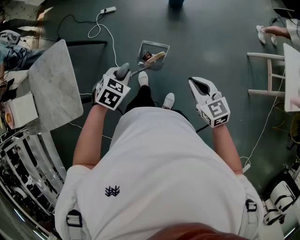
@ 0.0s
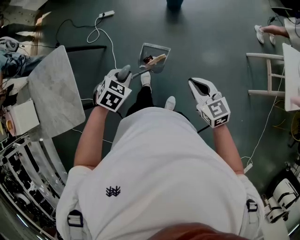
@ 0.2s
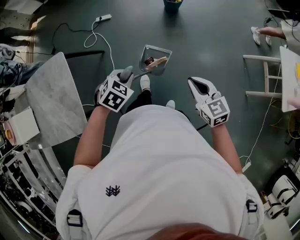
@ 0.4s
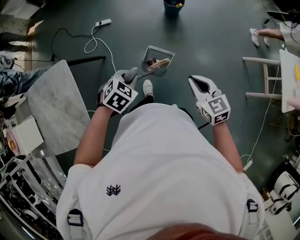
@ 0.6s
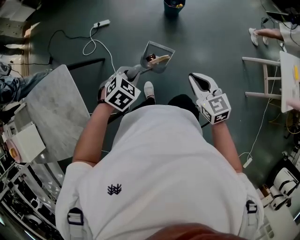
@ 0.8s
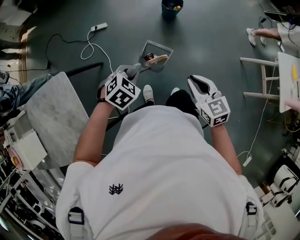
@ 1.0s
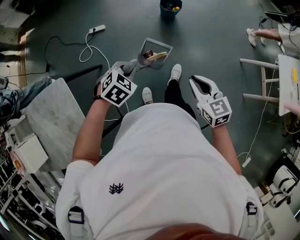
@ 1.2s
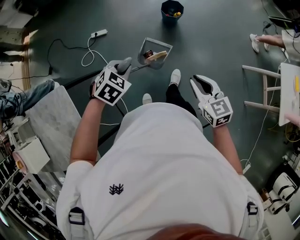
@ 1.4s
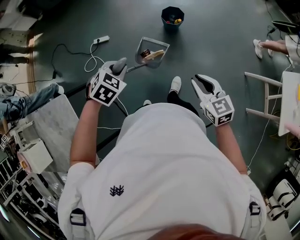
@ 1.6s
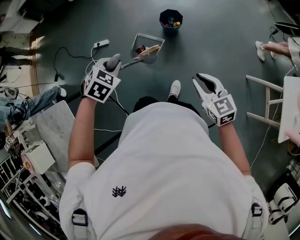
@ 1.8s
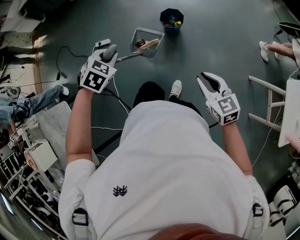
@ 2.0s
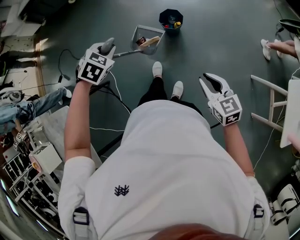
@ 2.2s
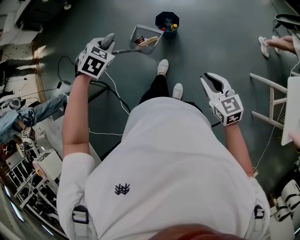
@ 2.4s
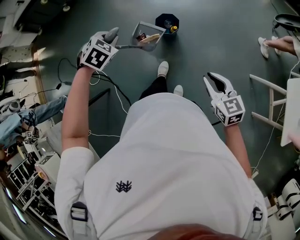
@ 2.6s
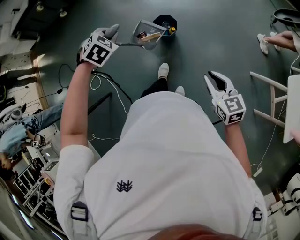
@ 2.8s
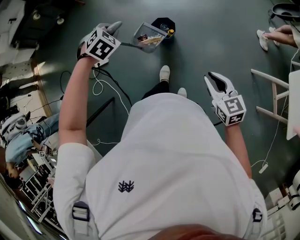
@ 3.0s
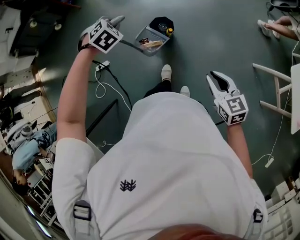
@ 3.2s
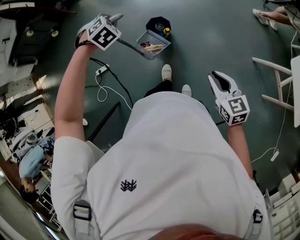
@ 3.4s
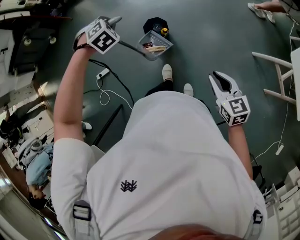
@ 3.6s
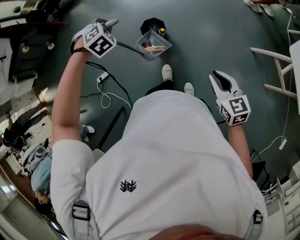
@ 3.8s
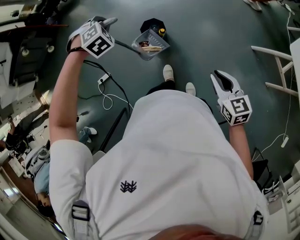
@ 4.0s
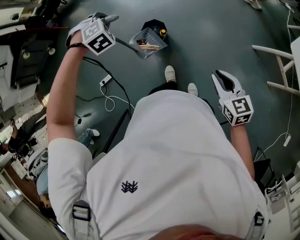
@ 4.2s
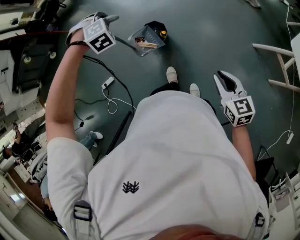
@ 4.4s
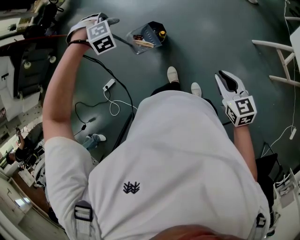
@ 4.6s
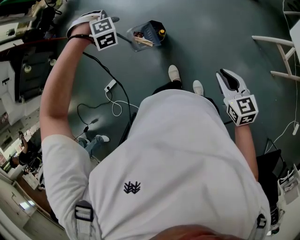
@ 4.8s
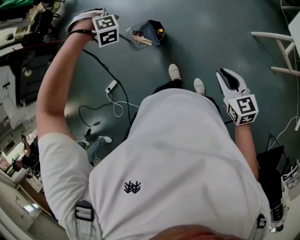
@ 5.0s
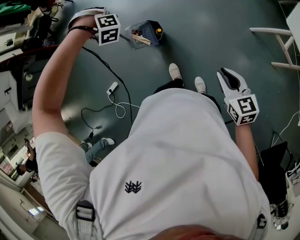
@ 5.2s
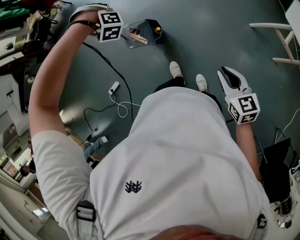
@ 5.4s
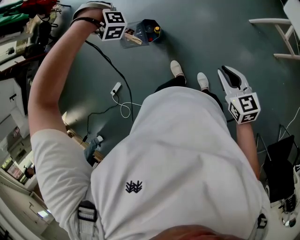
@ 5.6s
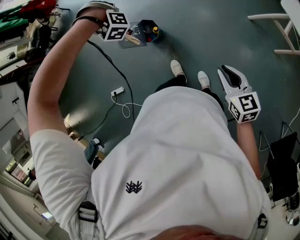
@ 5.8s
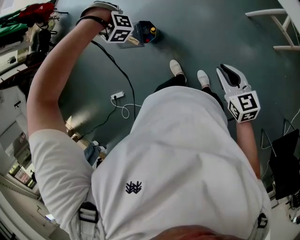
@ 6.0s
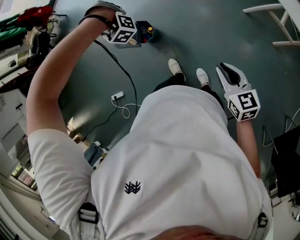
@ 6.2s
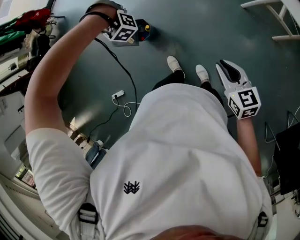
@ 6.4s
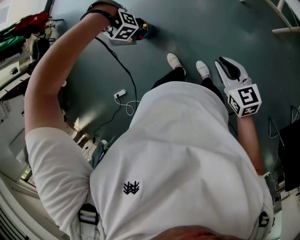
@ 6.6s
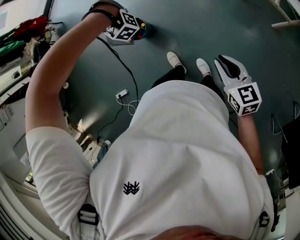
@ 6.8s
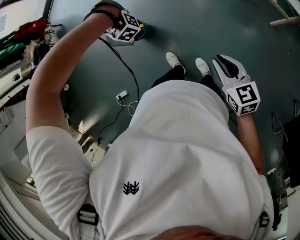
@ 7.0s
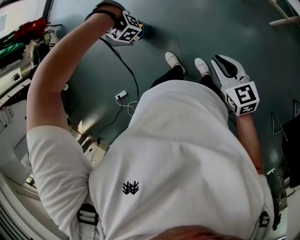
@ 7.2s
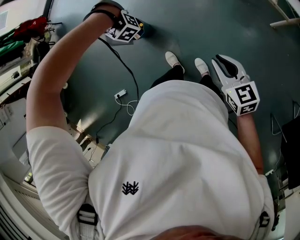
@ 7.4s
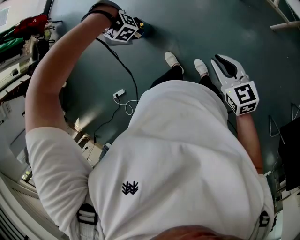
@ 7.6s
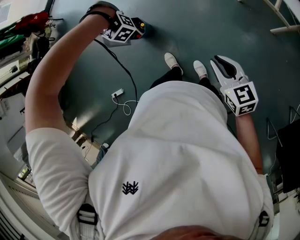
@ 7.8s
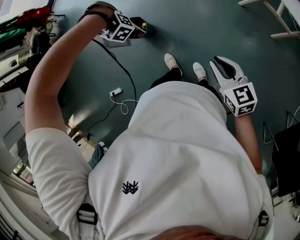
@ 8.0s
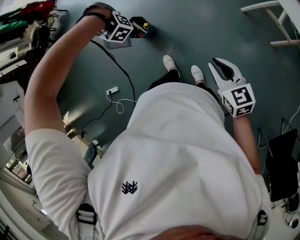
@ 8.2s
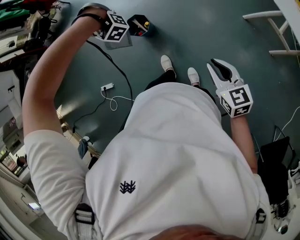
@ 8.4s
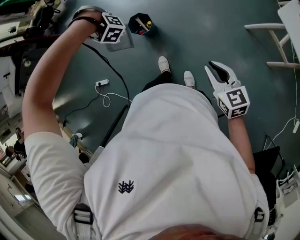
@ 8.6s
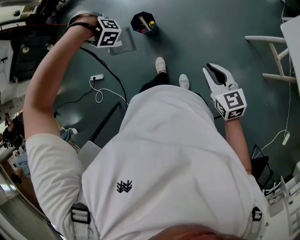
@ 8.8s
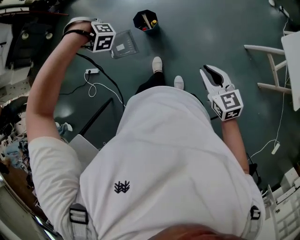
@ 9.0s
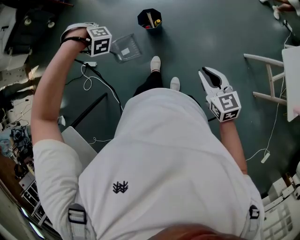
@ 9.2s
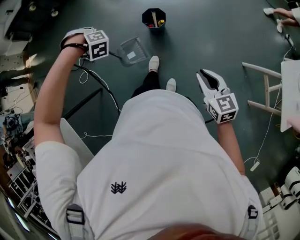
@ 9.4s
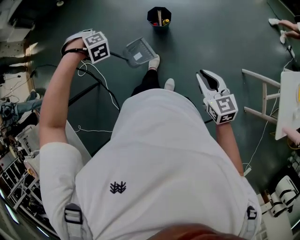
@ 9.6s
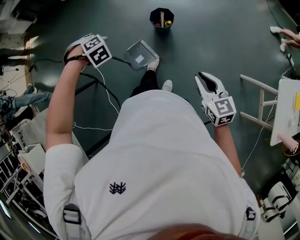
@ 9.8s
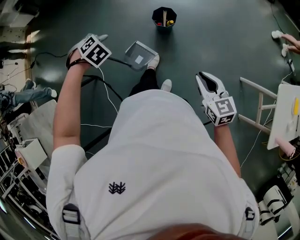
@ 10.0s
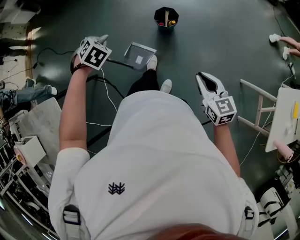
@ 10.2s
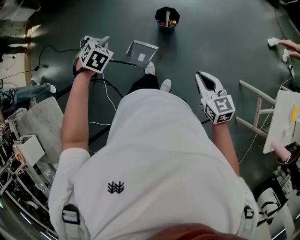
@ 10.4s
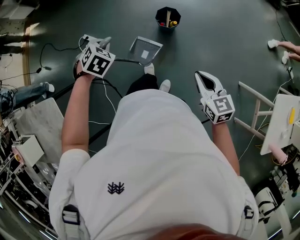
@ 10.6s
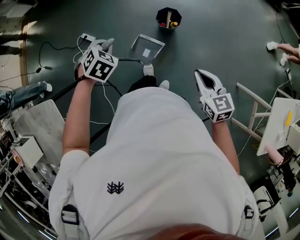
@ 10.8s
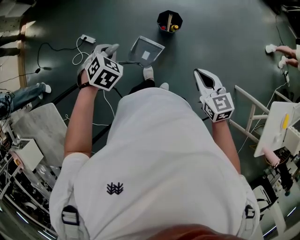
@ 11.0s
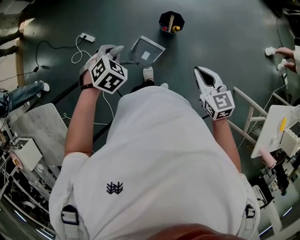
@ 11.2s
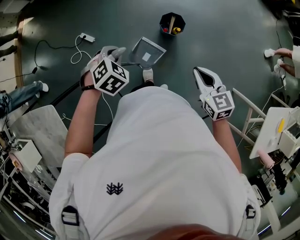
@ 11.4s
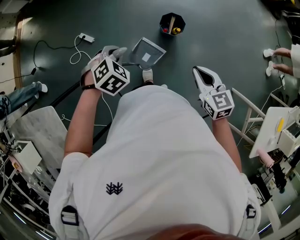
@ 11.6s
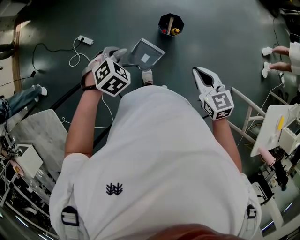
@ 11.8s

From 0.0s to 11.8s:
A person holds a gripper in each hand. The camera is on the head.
From 0.0s to 1.4s: The right gripper shifts by some 25 cm.
From 1.4s to 3.0s: The right gripper shifts by roughly 30 cm.
From 4.4s to 6.0s: The right gripper moves about 10 cm.
From 6.0s to 7.4s: The right gripper shifts by roughly 5 cm.
From 7.4s to 8.8s: The right gripper ends up some 5 cm from where it was, and turns by roughly 20 degrees.
From 8.8s to 10.4s: The right gripper changes place by some 10 cm, and changes its angle by approximately 30 degrees.
From 10.4s to 11.8s: The right gripper moves about 20 cm.

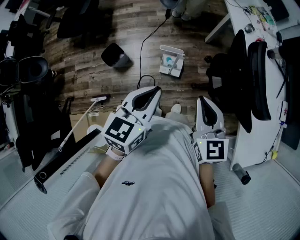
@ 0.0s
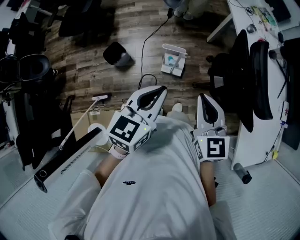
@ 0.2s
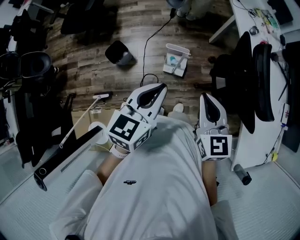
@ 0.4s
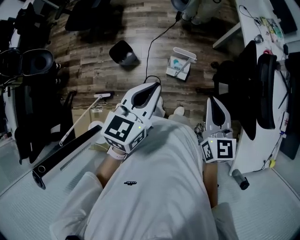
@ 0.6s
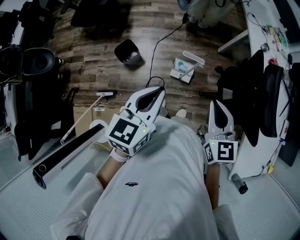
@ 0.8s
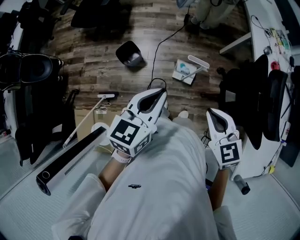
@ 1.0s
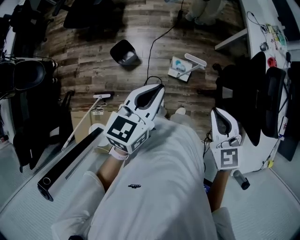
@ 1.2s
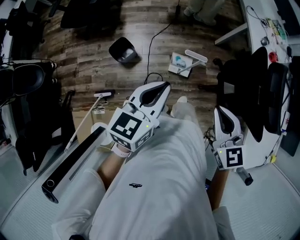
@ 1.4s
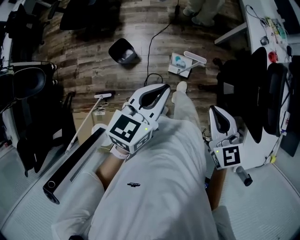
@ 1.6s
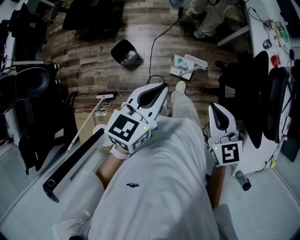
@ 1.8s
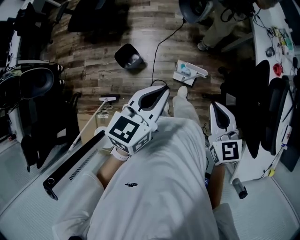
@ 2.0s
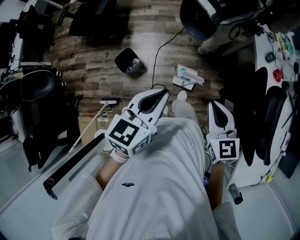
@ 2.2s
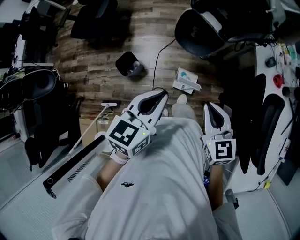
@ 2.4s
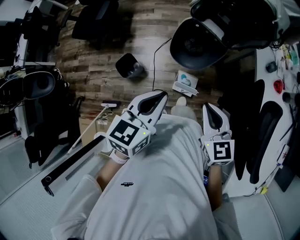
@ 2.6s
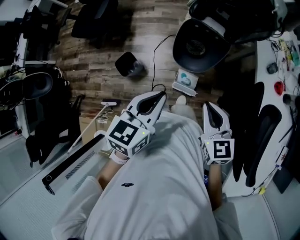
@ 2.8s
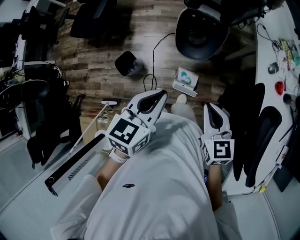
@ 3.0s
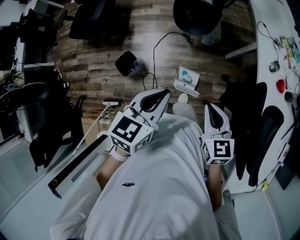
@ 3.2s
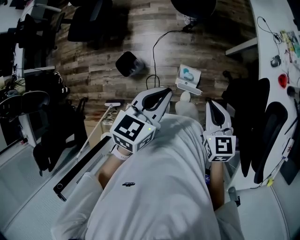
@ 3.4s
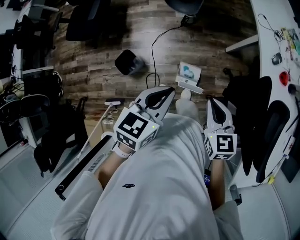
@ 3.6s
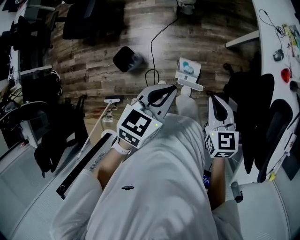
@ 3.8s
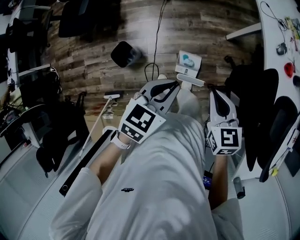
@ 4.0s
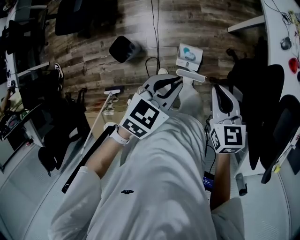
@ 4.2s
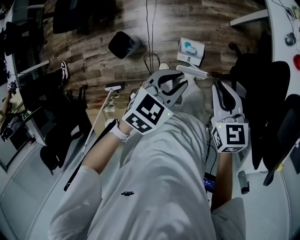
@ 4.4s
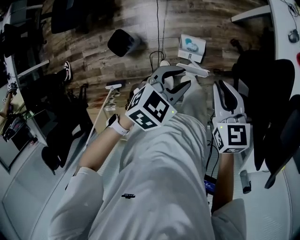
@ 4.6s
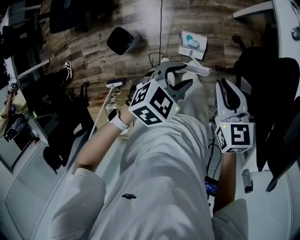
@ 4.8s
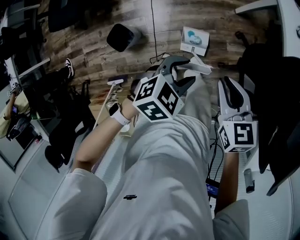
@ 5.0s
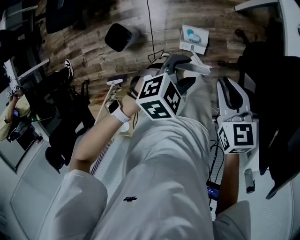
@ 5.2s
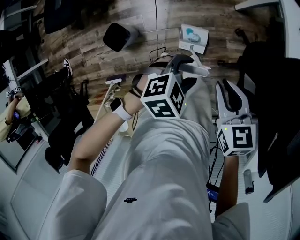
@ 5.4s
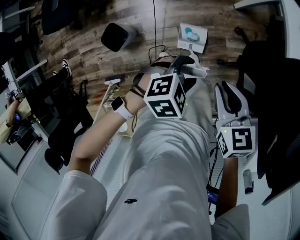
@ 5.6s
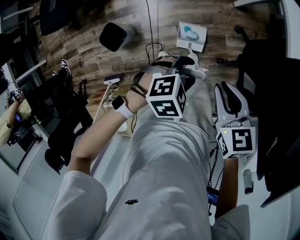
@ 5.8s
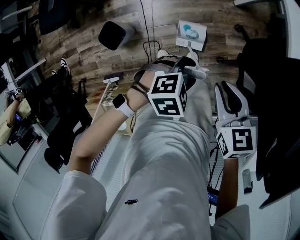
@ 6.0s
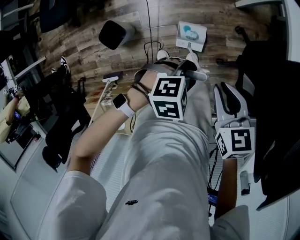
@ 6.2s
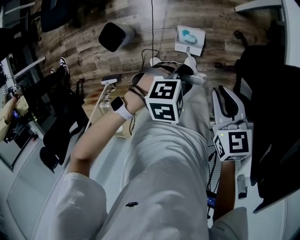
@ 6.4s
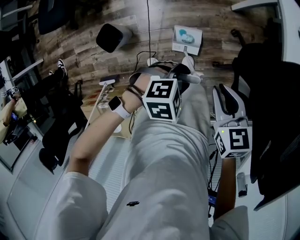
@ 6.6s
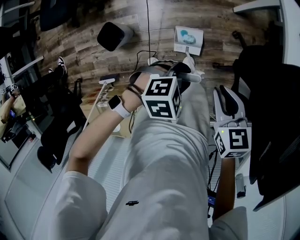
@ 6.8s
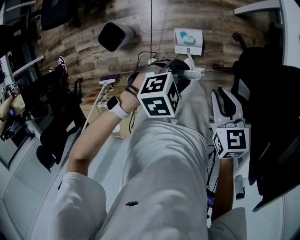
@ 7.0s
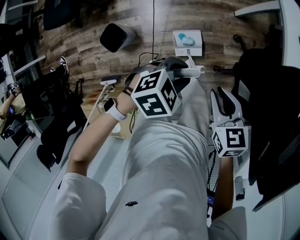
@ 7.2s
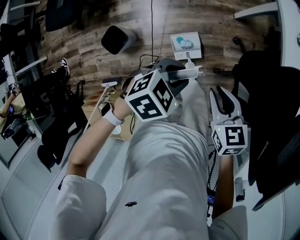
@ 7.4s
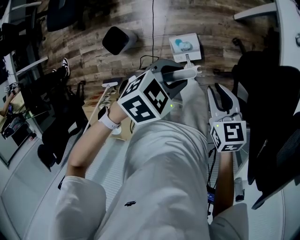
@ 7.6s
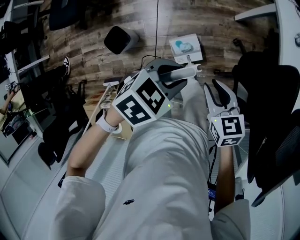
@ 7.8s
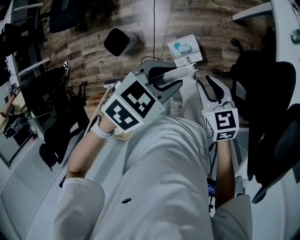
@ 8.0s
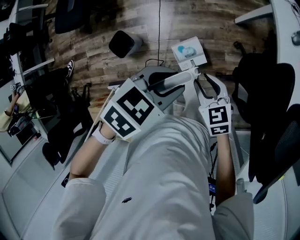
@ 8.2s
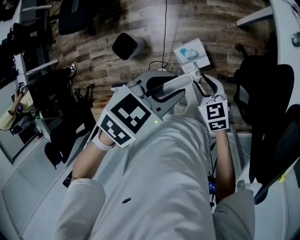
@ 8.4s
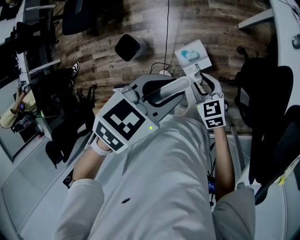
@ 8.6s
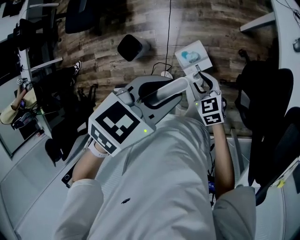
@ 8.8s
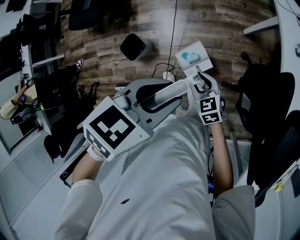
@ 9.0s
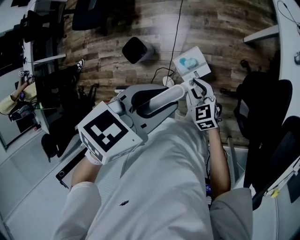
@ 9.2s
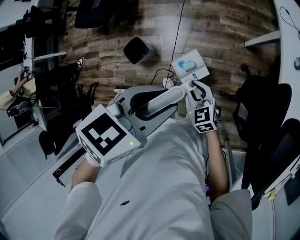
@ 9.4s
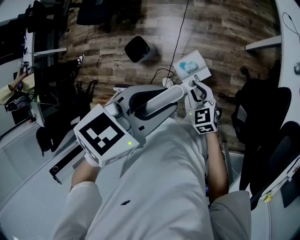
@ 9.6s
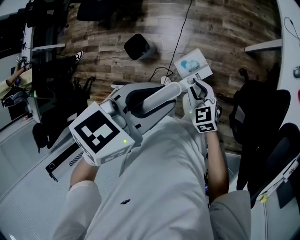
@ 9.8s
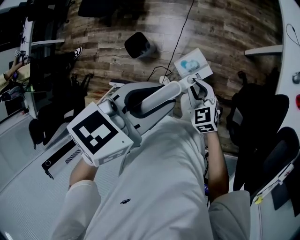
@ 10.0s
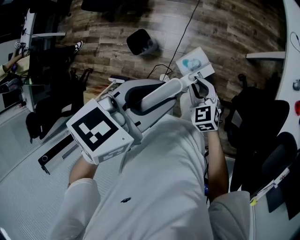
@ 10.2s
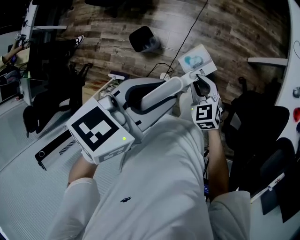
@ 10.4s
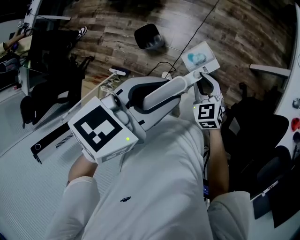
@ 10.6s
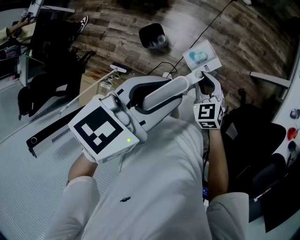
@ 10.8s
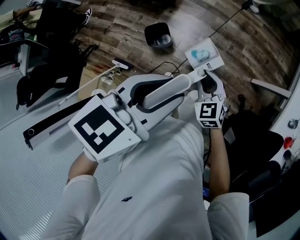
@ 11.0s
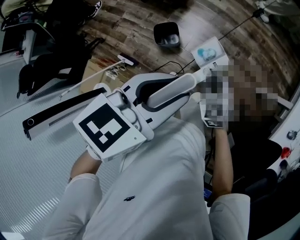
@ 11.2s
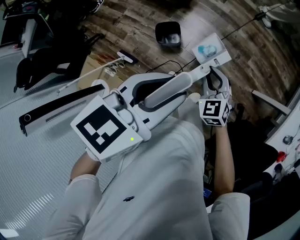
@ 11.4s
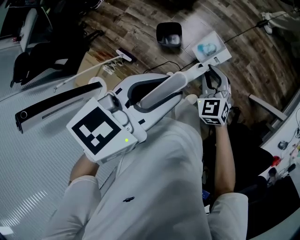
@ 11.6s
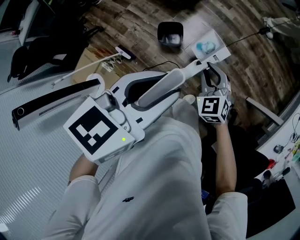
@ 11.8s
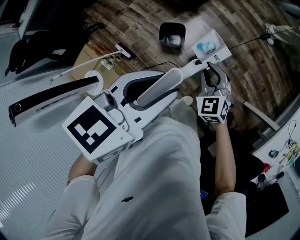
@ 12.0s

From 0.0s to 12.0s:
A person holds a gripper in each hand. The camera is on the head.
From 0.0s to 1.6s: Both grippers move to the left, some 10 cm.
From 1.6s to 3.0s: The left gripper goes about 15 cm forward and to the right. Meanwhile the right gripper goes about 20 cm forward.
From 3.0s to 4.4s: The left gripper travels downward by roughly 15 cm, and rotates some 30 degrees, while the right gripper is displaced downward by about 10 cm.
From 4.4s to 6.0s: The left gripper moves downward, approximately 15 cm, turns by approximately 40 degrees, and opens up. The right gripper travels downward by roughly 10 cm.
From 6.0s to 7.6s: The left gripper is displaced upward by some 10 cm, and changes its angle by some 20 degrees.
From 7.6s to 9.0s: The right gripper is displaced to the left and downward by some 10 cm, while the left gripper moves upward, some 15 cm, and swivels roughly 20 degrees.
From 9.0s to 10.4s: The grippers both shift to the left and upward by approximately 10 cm. The left gripper rotates roughly 20 degrees; the right gripper swivels some 20 degrees.
From 10.4s to 12.0s: The left gripper shifts by roughly 20 cm, and rotates roughly 30 degrees. Meanwhile the right gripper changes place by some 20 cm, and changes its angle by roughly 30 degrees.
